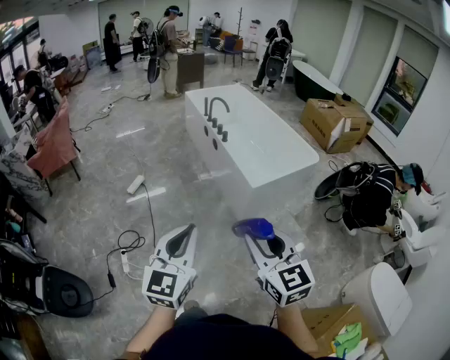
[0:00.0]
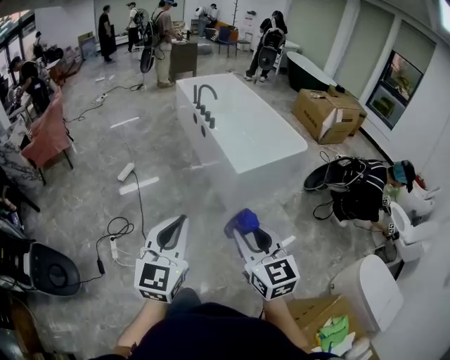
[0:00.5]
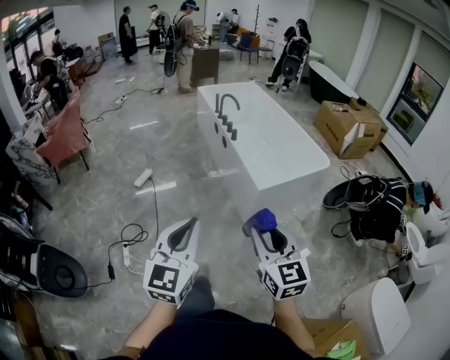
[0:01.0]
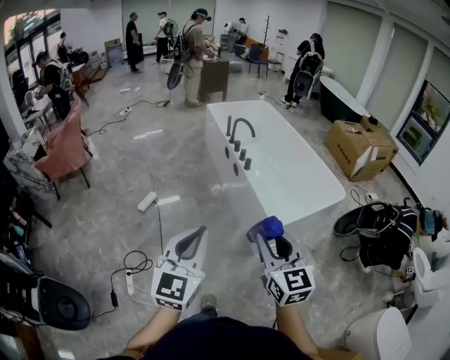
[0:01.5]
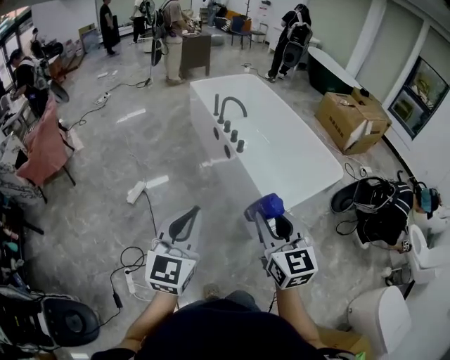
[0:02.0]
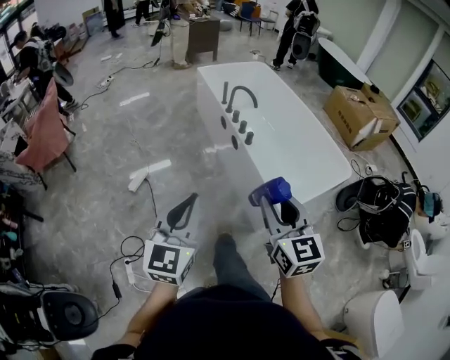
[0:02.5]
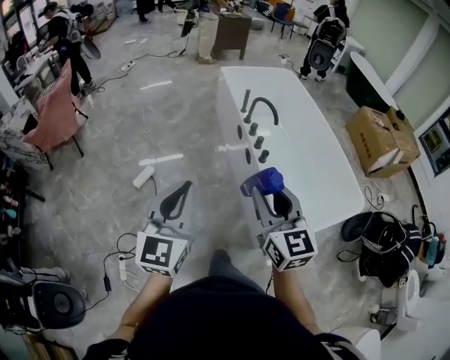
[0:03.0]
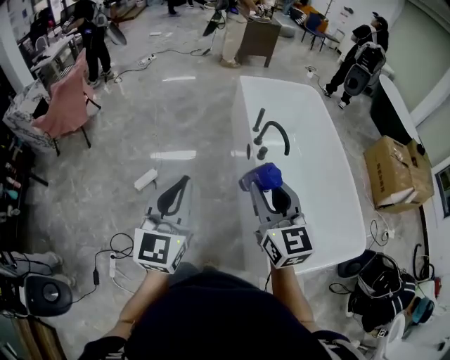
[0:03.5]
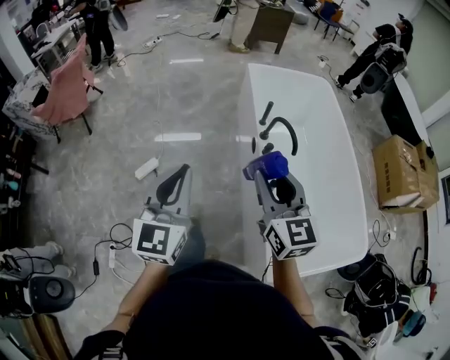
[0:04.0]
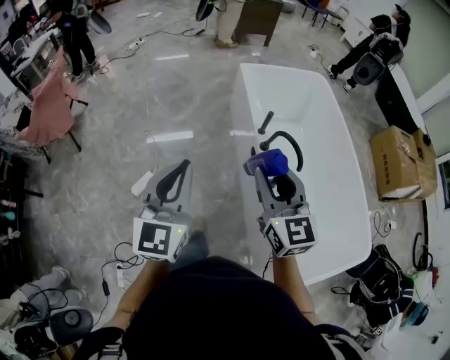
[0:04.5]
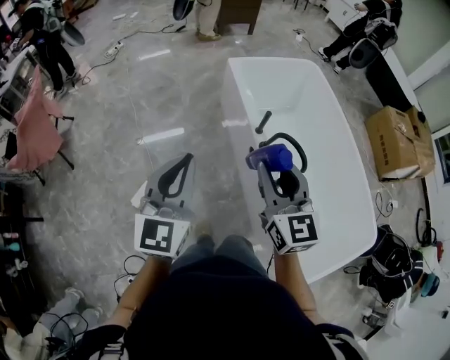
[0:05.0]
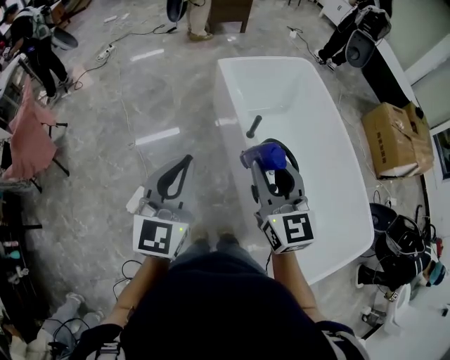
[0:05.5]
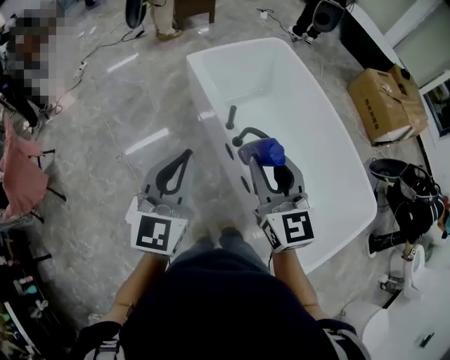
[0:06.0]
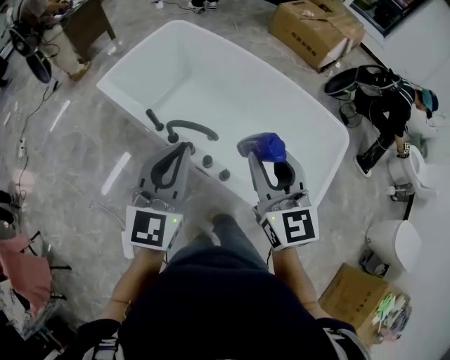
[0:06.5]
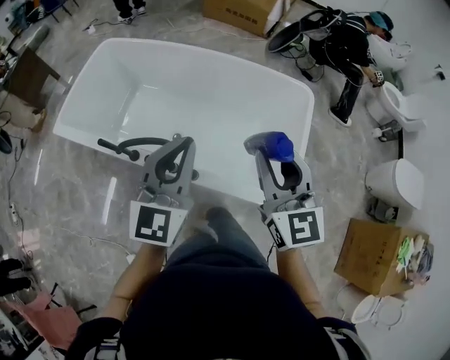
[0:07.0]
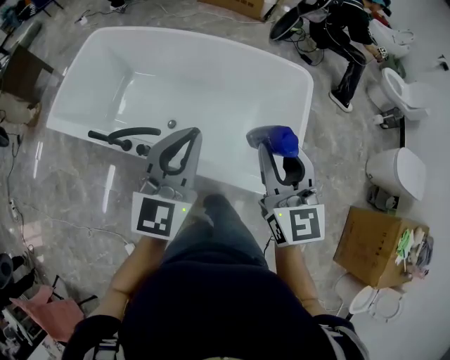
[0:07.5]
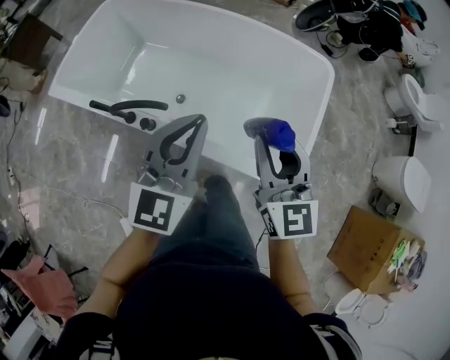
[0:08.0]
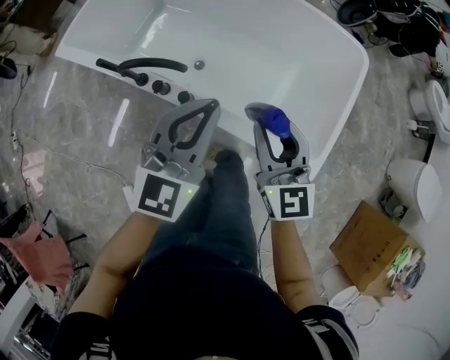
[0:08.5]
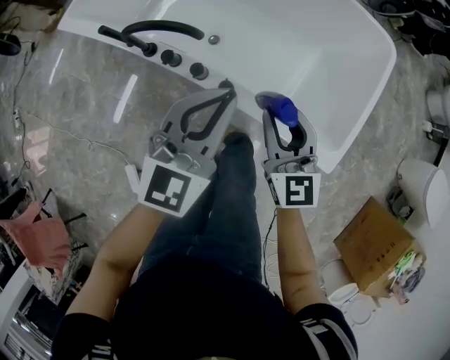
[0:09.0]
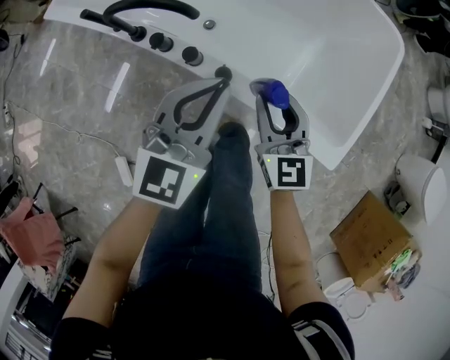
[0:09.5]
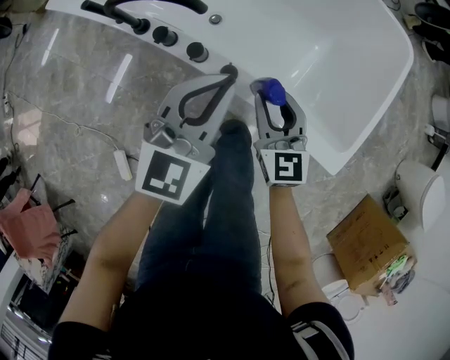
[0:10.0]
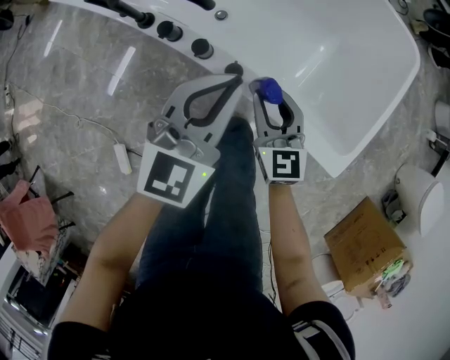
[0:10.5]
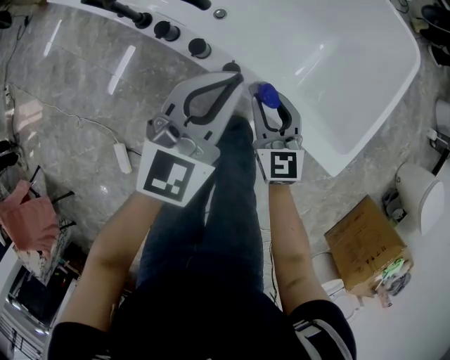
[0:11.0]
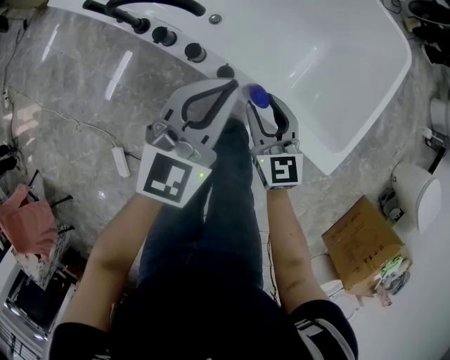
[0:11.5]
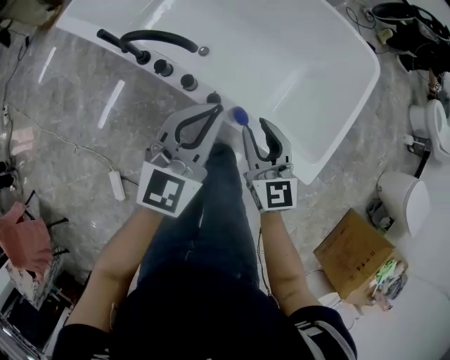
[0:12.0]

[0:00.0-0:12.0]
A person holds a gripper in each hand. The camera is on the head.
0:00.0 to 0:02.0: Both grippers travel together forward, about 35 cm.
0:02.0 to 0:04.0: The two grippers travel together, forward, roughly 50 cm. The right gripper swivels some 20 degrees, while the left gripper swivels about 30 degrees.
0:04.0 to 0:06.0: Both grippers travel together forward, about 25 cm. The left gripper swivels about 30 degrees, while the right gripper rotates approximately 20 degrees.
0:06.0 to 0:08.0: The left gripper changes place by roughly 40 cm, and turns by some 50 degrees. The right gripper moves some 40 cm, and rotates roughly 50 degrees.
0:08.0 to 0:10.0: Both grippers travel together downward, roughly 25 cm.
0:10.0 to 0:12.0: The grippers both shift upward by some 10 cm.

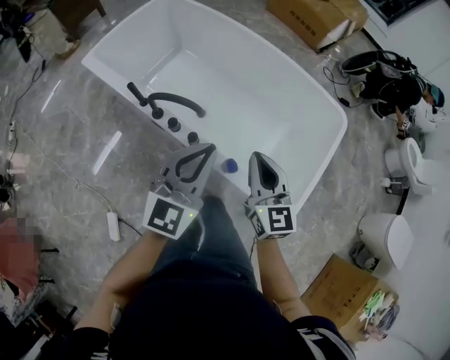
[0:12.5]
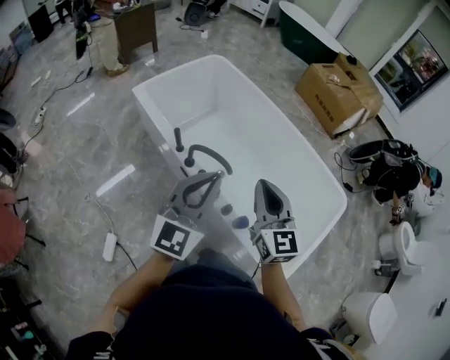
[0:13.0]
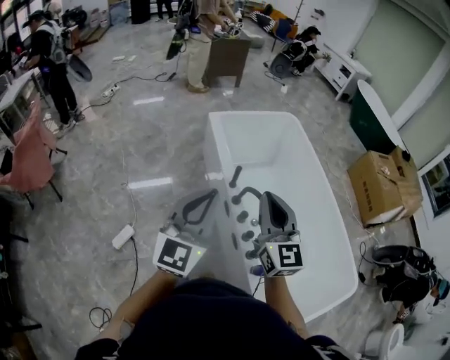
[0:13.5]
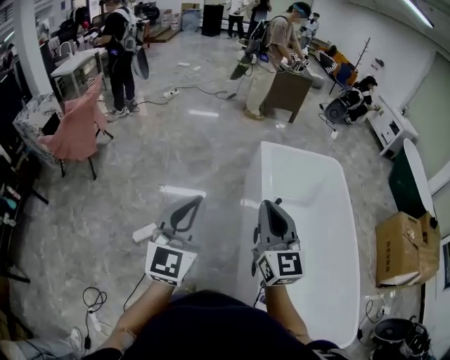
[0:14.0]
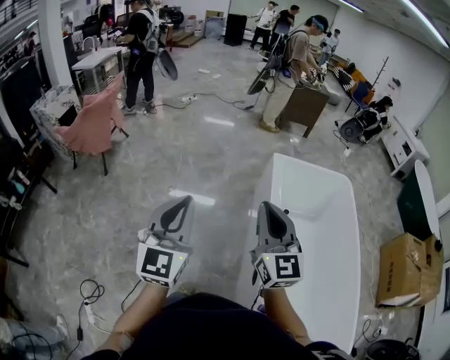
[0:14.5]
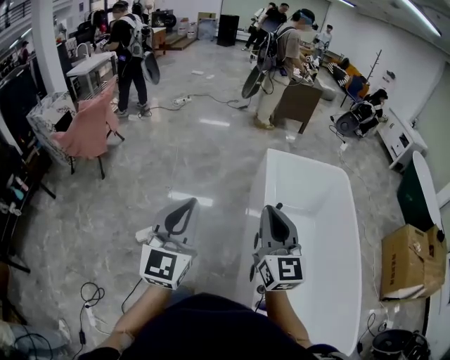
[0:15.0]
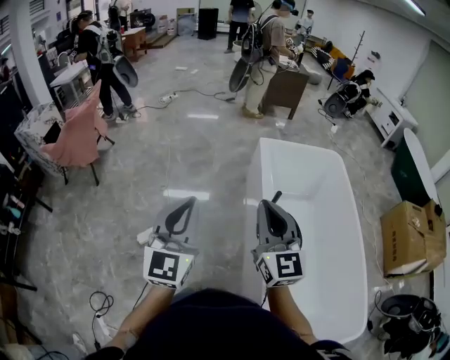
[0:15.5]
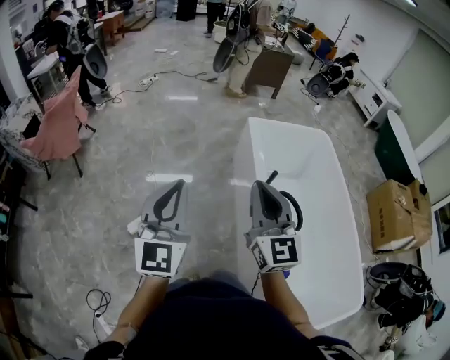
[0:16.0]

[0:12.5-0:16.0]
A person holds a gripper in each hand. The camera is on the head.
0:12.5 to 0:14.5: The right gripper changes place by some 40 cm, and rotates approximately 70 degrees. The left gripper moves about 40 cm, and rotates roughly 80 degrees.
0:14.5 to 0:16.0: The right gripper shifts by about 5 cm.

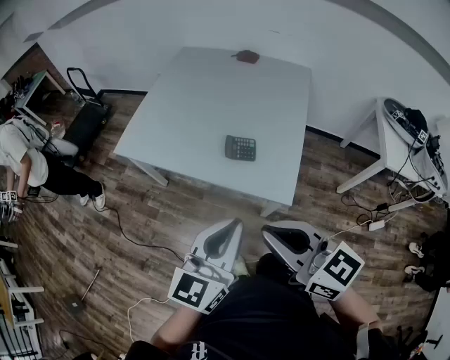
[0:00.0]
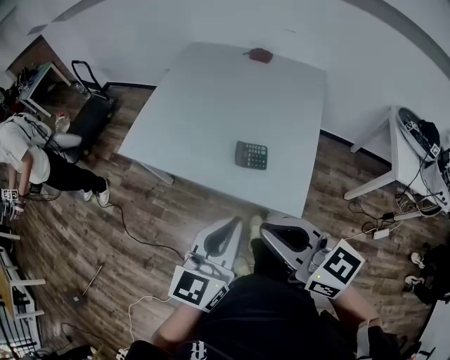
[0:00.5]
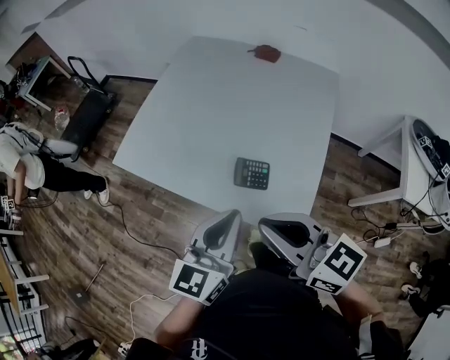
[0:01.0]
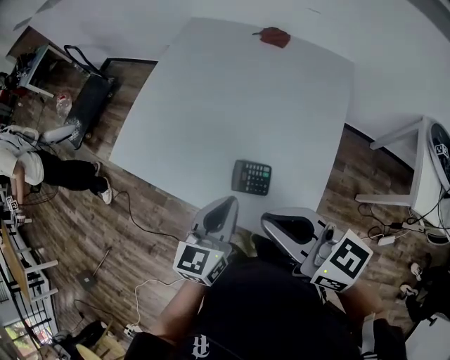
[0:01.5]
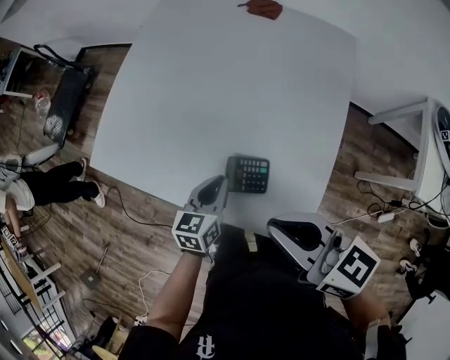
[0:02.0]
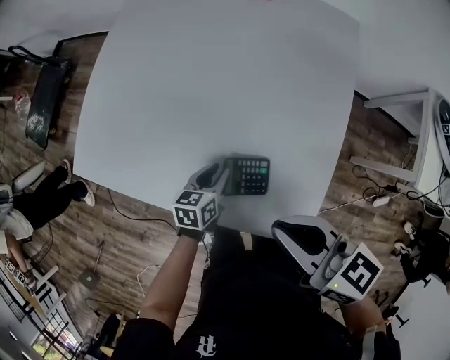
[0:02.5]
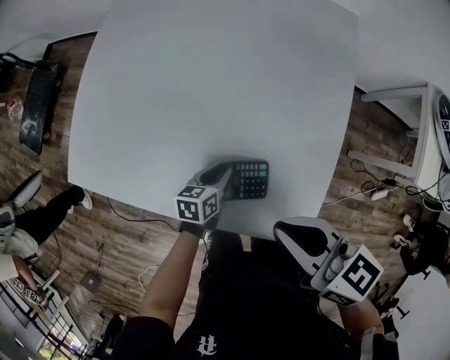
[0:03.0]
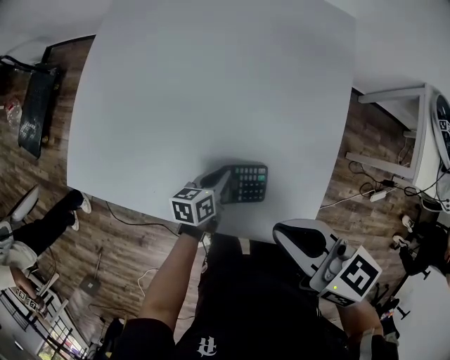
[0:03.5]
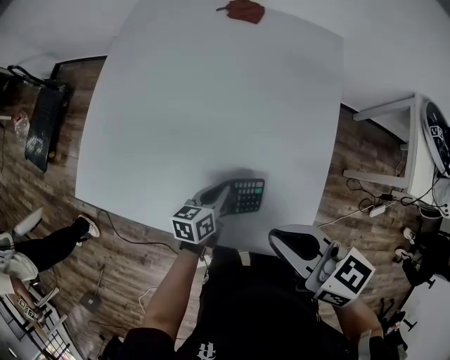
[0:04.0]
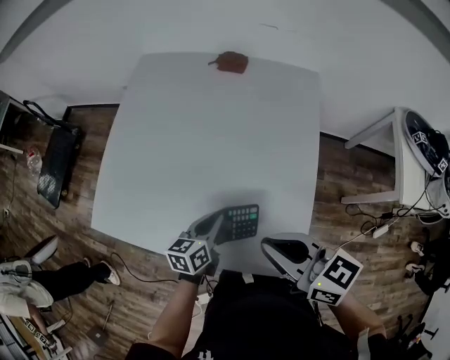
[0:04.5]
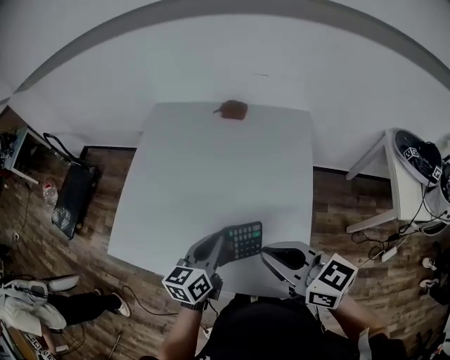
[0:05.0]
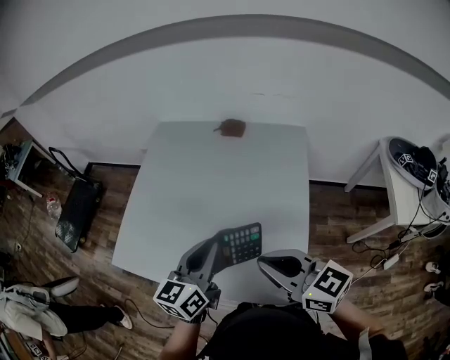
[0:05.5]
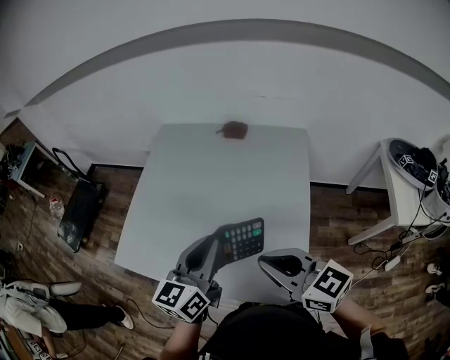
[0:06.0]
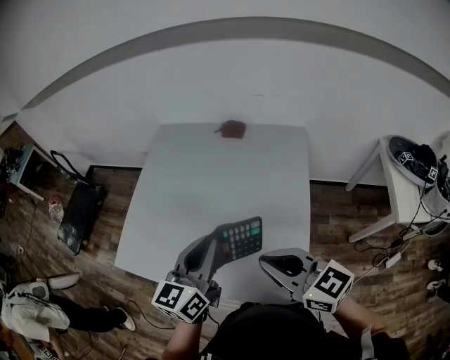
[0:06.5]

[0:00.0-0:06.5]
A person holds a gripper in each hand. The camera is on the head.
0:00.0 to 0:02.0: The right gripper heads forward, covering approximately 30 cm; the left gripper shifts some 40 cm forward and downward, and changes its angle by about 30 degrees.
0:02.0 to 0:04.5: The left gripper moves approximately 15 cm downward and comes back.
0:04.5 to 0:06.5: The left gripper is displaced upward by roughly 25 cm, and changes its angle by roughly 30 degrees, while the right gripper shifts roughly 5 cm upward.

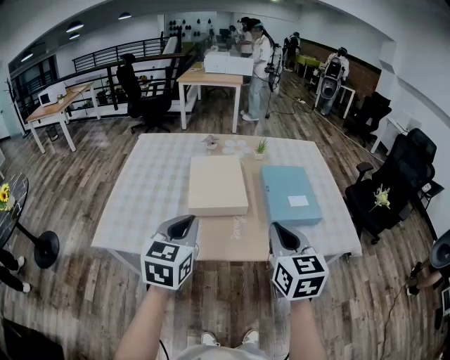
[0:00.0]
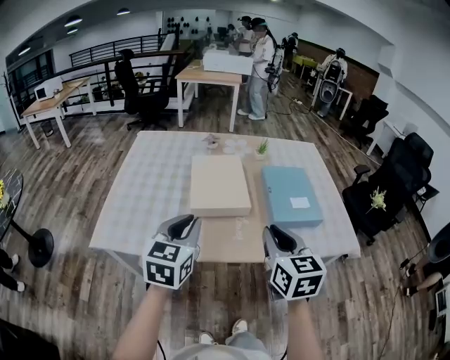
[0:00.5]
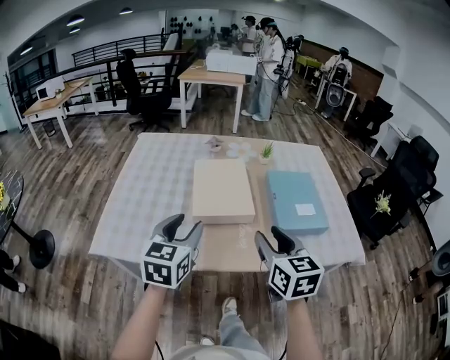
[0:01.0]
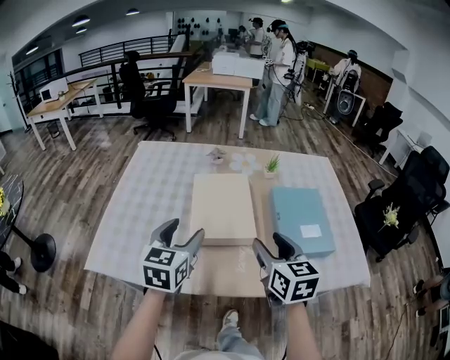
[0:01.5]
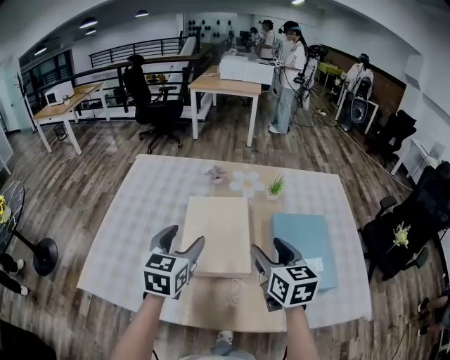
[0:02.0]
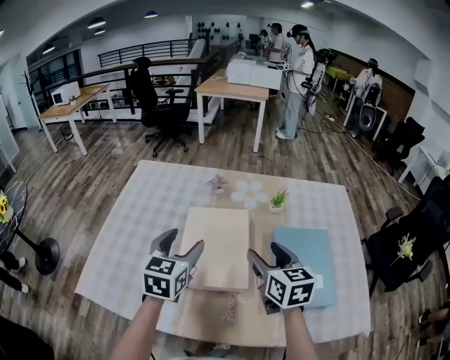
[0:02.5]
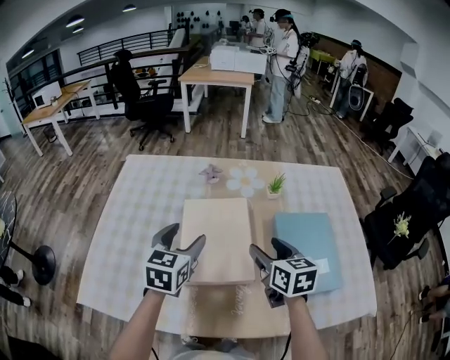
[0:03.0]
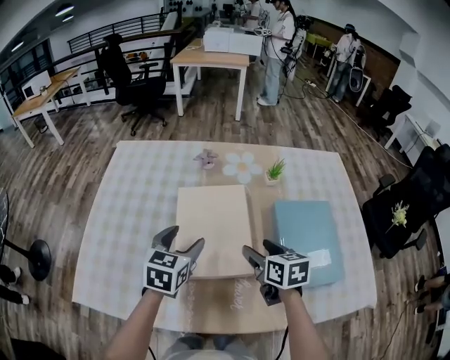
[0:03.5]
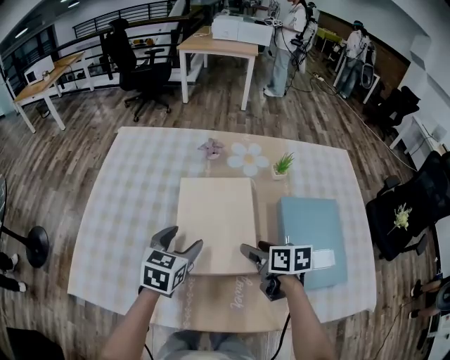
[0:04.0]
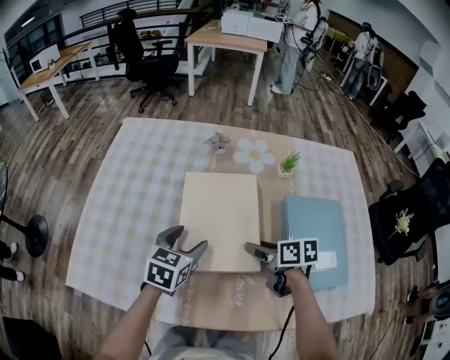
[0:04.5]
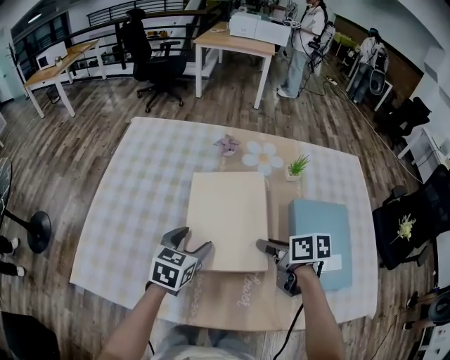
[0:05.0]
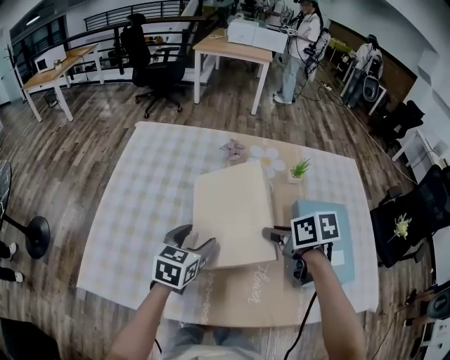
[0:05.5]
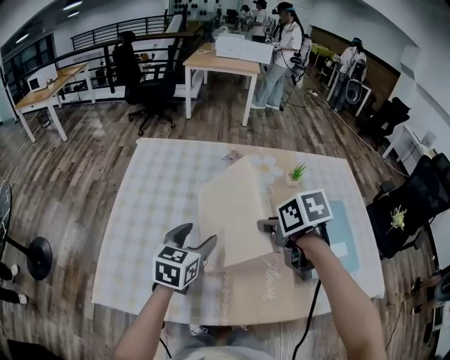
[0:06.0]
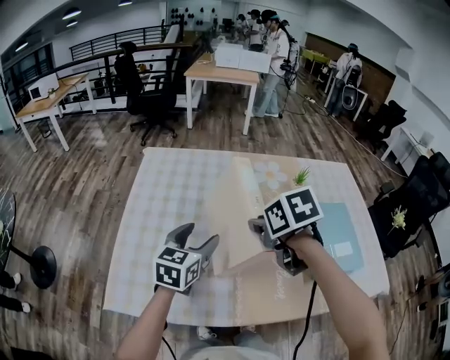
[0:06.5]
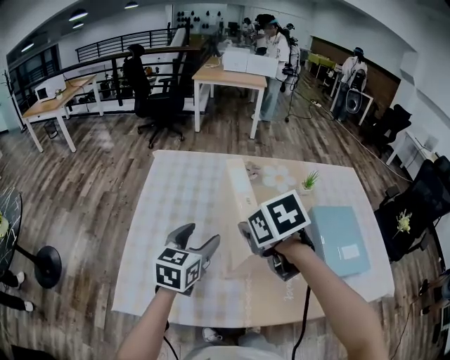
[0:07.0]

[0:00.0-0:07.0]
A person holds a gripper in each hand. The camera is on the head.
0:00.0 to 0:02.0: The two grippers go roughly 25 cm forward. The right gripper opens its fingers, while the left gripper opens up.
0:02.0 to 0:03.5: Both grippers move downward, approximately 10 cm. The right gripper turns by some 20 degrees.
0:03.5 to 0:05.0: The left gripper moves downward, some 5 cm, while the right gripper turns by roughly 30 degrees.
0:05.0 to 0:07.0: The left gripper moves upward and to the left, approximately 15 cm; the right gripper heads to the left and upward, covering approximately 25 cm, and changes its angle by approximately 40 degrees.
